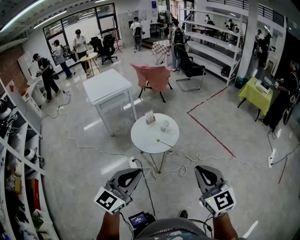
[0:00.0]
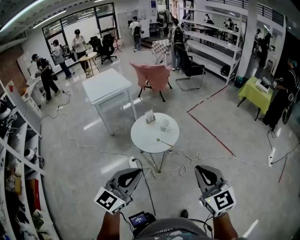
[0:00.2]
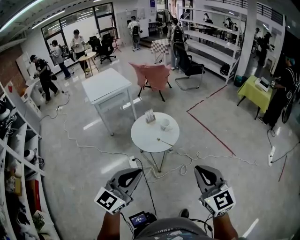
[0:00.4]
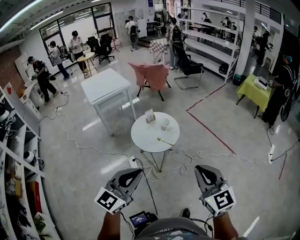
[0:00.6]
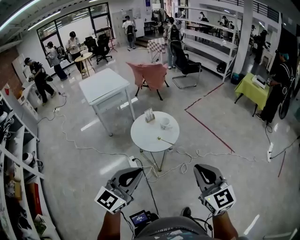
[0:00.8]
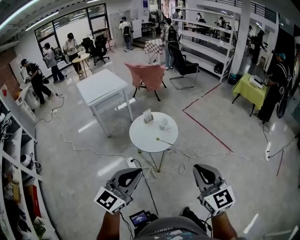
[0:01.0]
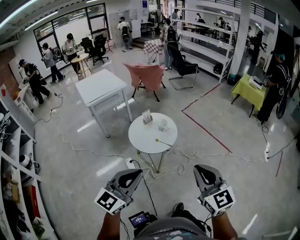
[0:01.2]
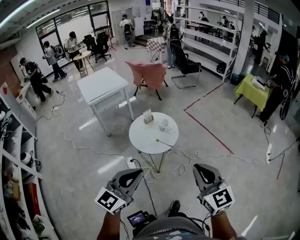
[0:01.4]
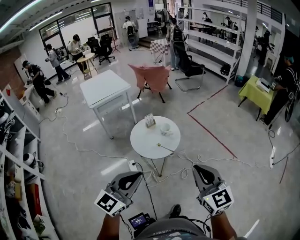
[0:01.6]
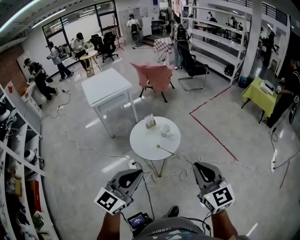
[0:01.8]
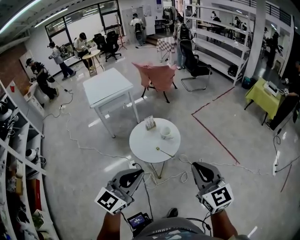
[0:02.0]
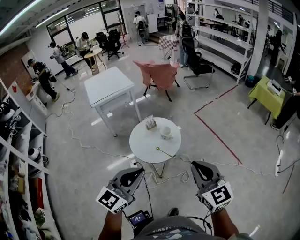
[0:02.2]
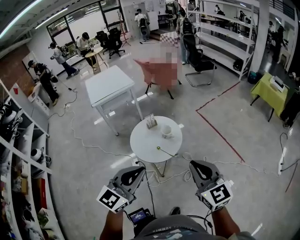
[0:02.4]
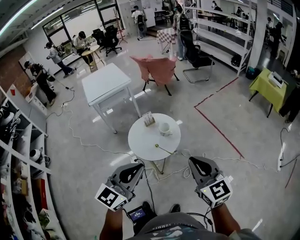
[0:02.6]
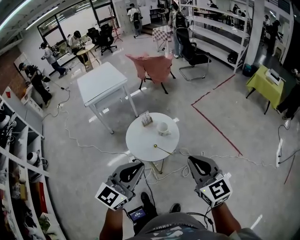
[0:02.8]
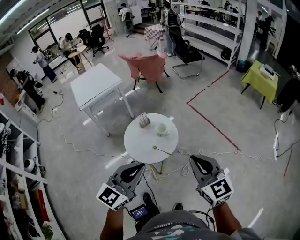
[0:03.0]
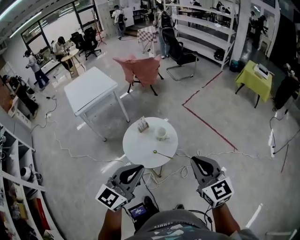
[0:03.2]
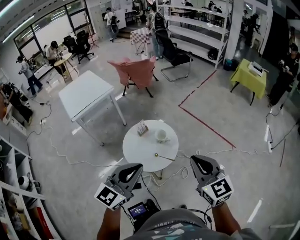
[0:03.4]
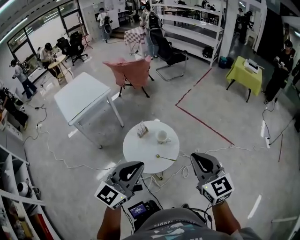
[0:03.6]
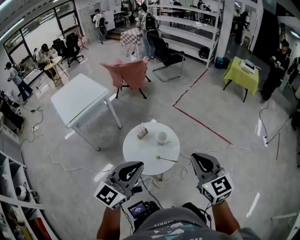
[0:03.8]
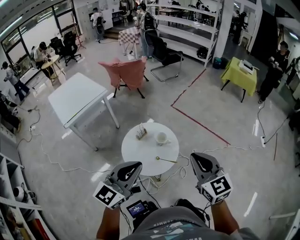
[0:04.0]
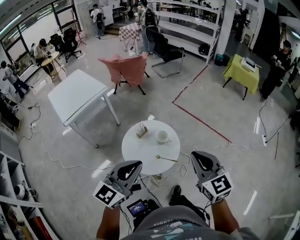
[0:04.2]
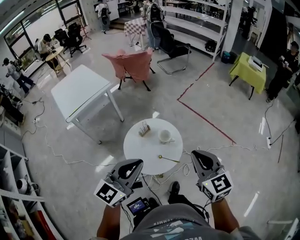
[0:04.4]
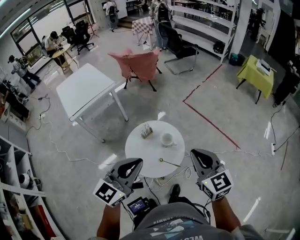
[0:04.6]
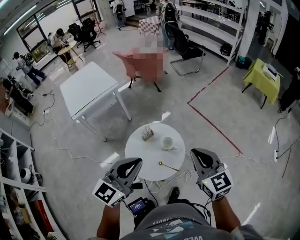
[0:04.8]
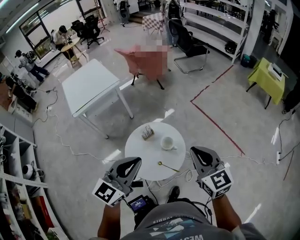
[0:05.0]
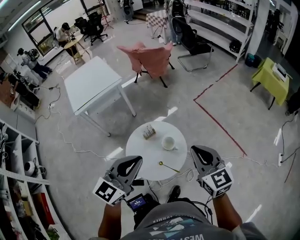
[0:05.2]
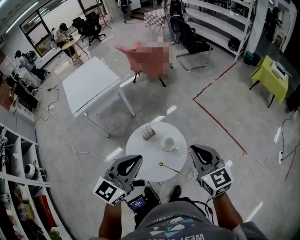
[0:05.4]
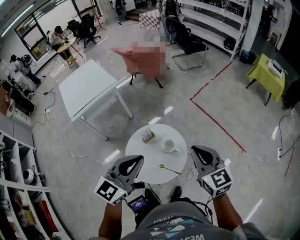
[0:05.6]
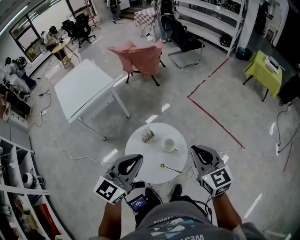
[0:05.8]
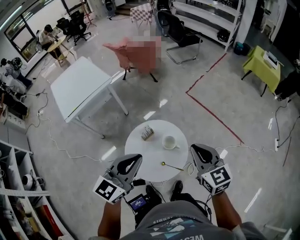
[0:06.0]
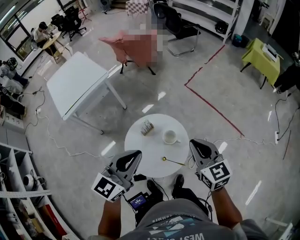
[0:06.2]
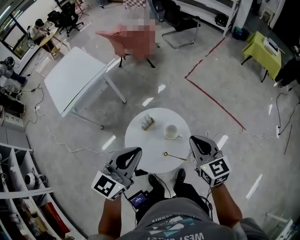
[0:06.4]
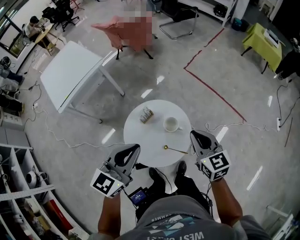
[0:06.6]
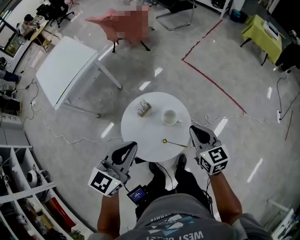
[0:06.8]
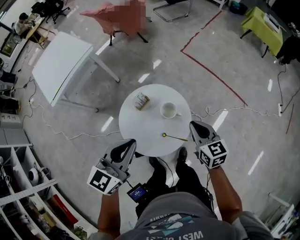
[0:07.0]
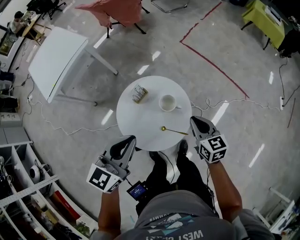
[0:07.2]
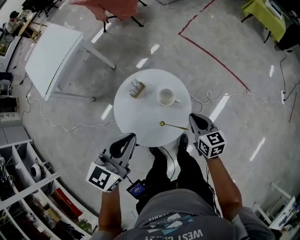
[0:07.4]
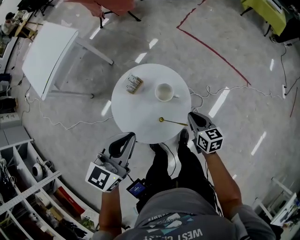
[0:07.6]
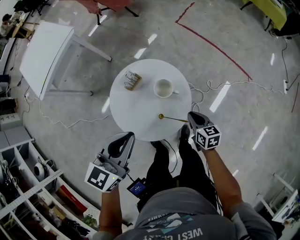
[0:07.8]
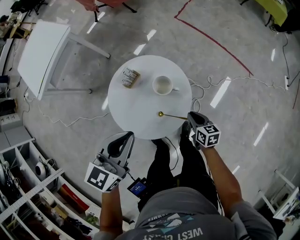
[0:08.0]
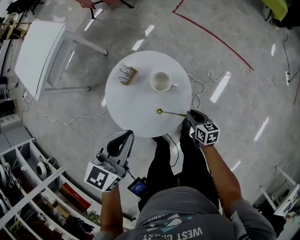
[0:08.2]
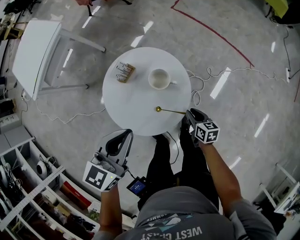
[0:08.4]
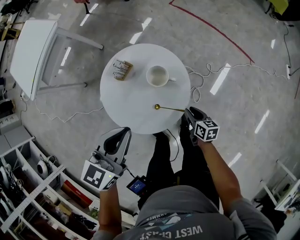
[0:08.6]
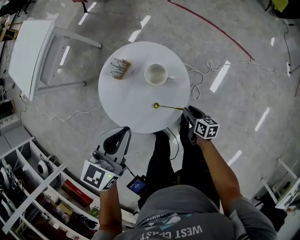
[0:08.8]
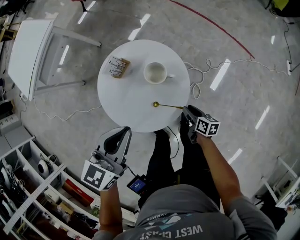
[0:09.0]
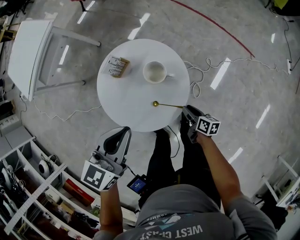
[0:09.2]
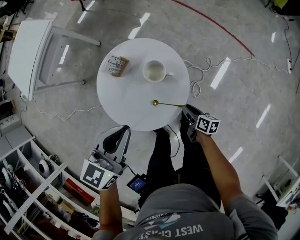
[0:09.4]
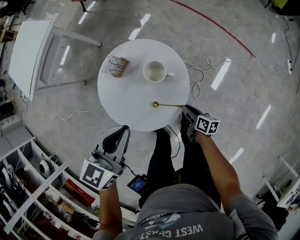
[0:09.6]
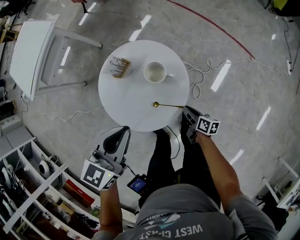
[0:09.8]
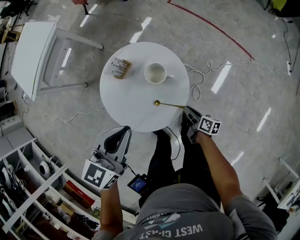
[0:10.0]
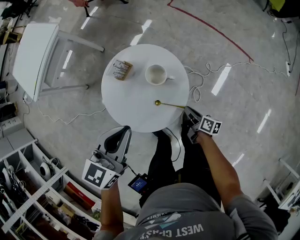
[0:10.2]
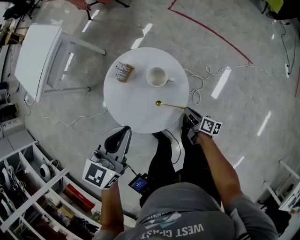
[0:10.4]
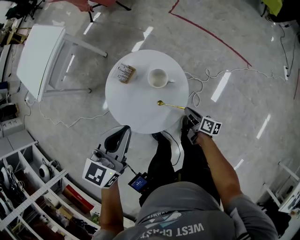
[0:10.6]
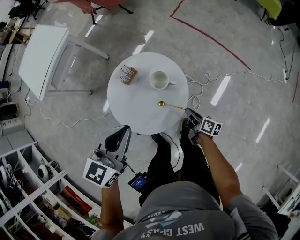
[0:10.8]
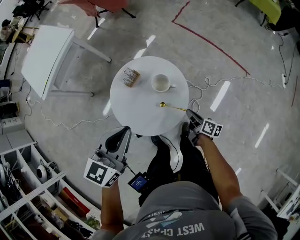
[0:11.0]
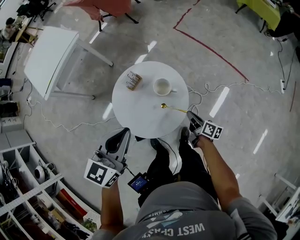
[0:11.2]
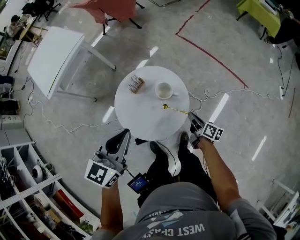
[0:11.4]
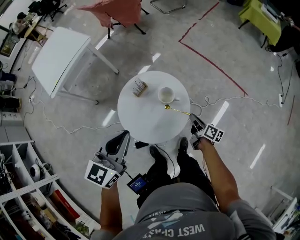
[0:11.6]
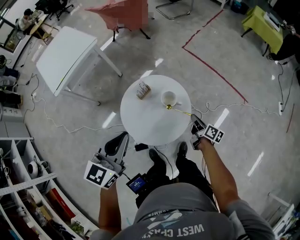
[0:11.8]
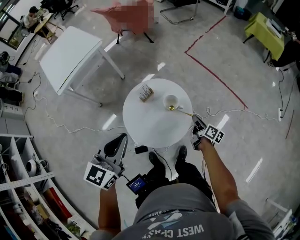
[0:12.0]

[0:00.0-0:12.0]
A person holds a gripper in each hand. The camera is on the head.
0:00.0 to 0:01.6: The right gripper ends up some 5 cm from where it was.
0:01.6 to 0:03.0: Both grippers move forward, approximately 15 cm.
0:03.0 to 0:04.4: The two grippers go about 10 cm to the left and forward.
0:04.4 to 0:06.0: Both grippers move forward, some 10 cm.
0:06.0 to 0:07.6: The right gripper shifts approximately 25 cm downward, and swivels some 30 degrees. The left gripper heads downward, covering about 10 cm.
0:07.6 to 0:09.0: The right gripper shifts some 20 cm downward and backward, swivels approximately 30 degrees, and opens. The left gripper ends up roughly 5 cm from where it was.
0:09.0 to 0:10.4: The right gripper closes its fingers.
0:10.4 to 0:12.0: The left gripper heads to the left and upward, covering approximately 10 cm. Meanwhile the right gripper travels forward and upward by roughly 15 cm.

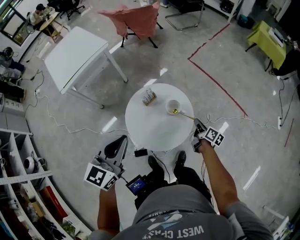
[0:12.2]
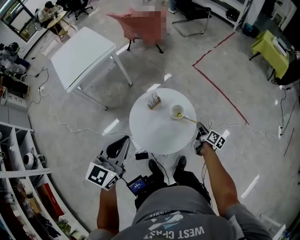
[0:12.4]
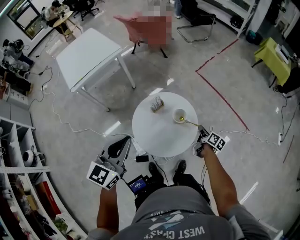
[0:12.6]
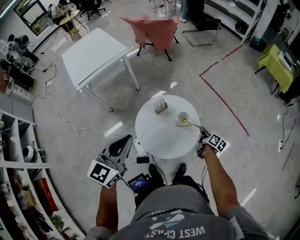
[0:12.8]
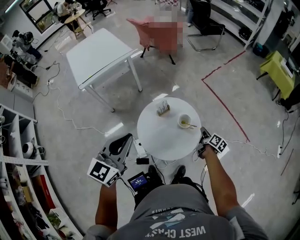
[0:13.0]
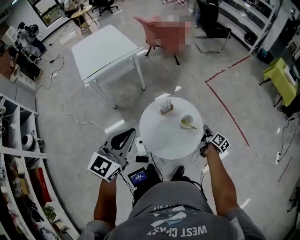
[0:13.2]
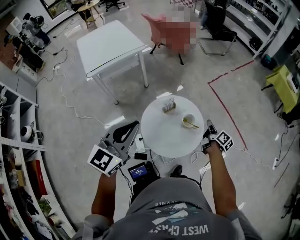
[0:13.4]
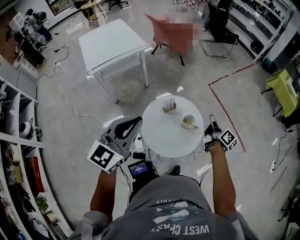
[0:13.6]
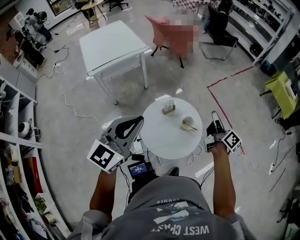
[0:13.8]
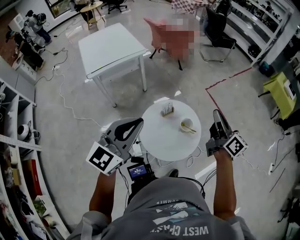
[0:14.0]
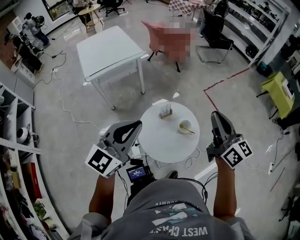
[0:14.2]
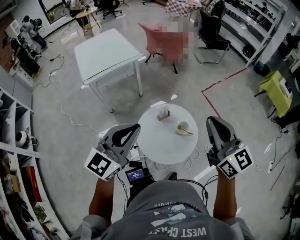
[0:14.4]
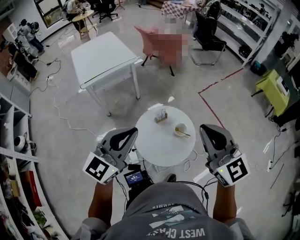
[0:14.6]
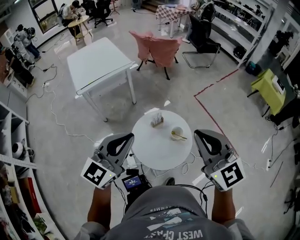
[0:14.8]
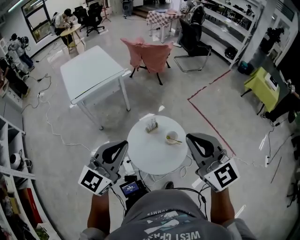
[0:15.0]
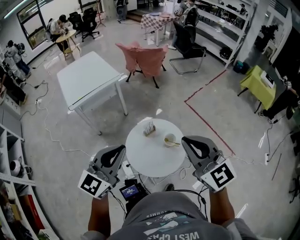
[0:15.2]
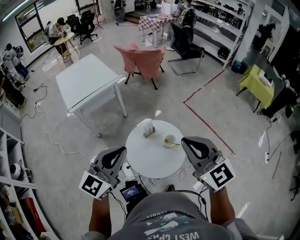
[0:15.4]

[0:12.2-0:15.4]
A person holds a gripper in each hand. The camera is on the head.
0:12.2 to 0:13.8: The right gripper shifts approximately 25 cm upward, and rotates about 30 degrees. The left gripper travels upward by about 10 cm.
0:13.8 to 0:15.4: The right gripper moves upward, backward and to the left, about 25 cm, and rotates around the line of its fingers by roughly 70 degrees, counterclockwise from behind.

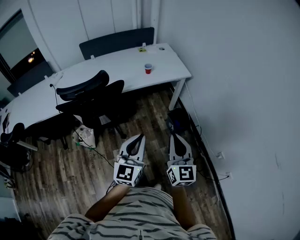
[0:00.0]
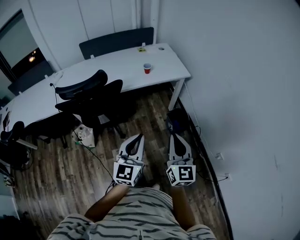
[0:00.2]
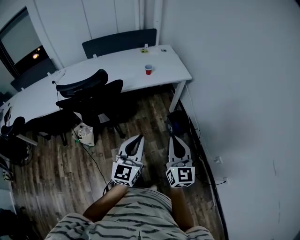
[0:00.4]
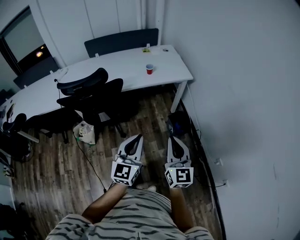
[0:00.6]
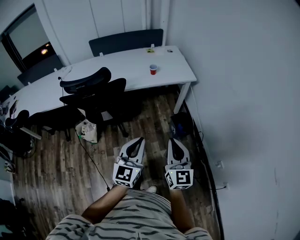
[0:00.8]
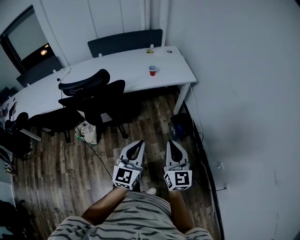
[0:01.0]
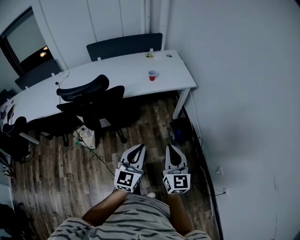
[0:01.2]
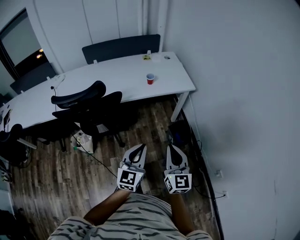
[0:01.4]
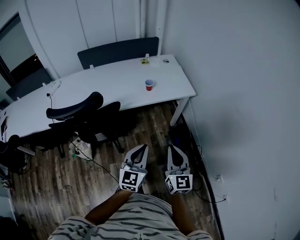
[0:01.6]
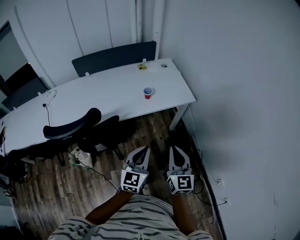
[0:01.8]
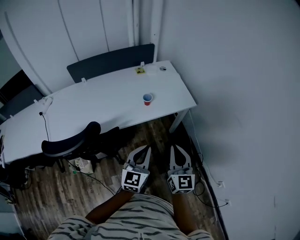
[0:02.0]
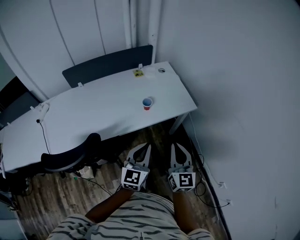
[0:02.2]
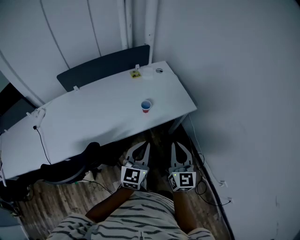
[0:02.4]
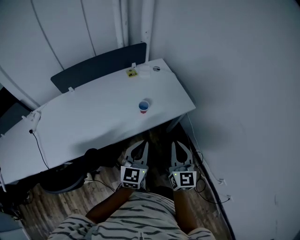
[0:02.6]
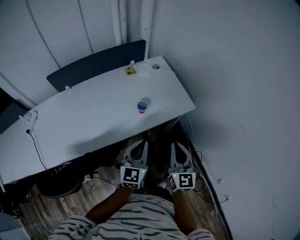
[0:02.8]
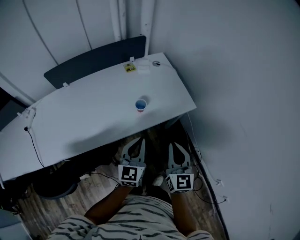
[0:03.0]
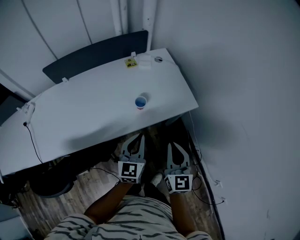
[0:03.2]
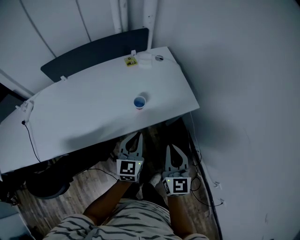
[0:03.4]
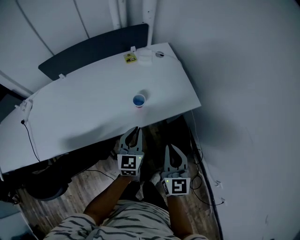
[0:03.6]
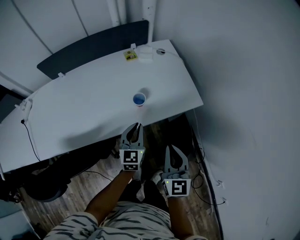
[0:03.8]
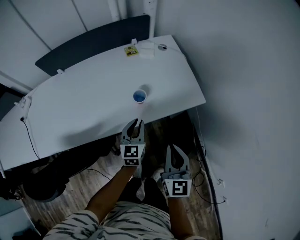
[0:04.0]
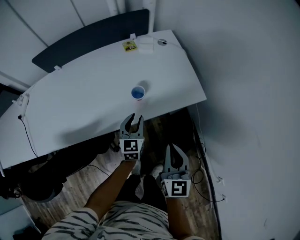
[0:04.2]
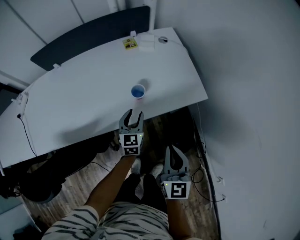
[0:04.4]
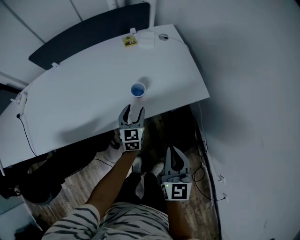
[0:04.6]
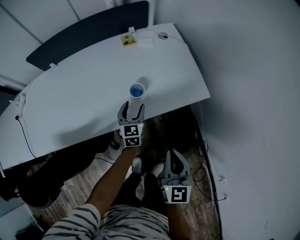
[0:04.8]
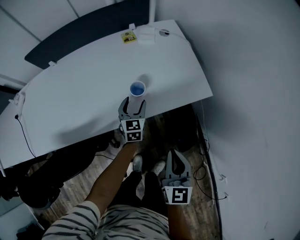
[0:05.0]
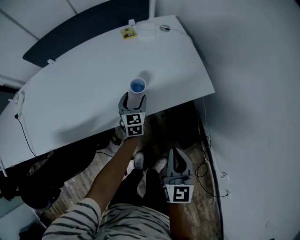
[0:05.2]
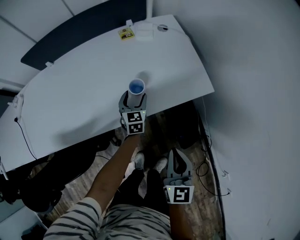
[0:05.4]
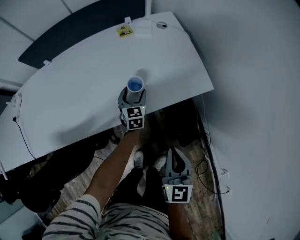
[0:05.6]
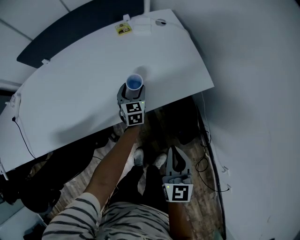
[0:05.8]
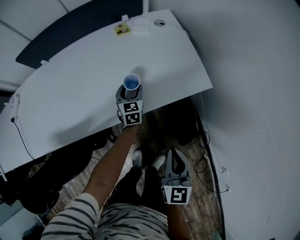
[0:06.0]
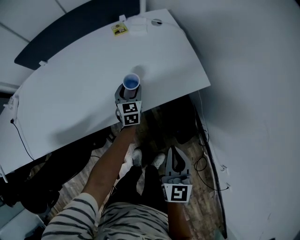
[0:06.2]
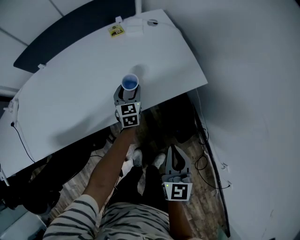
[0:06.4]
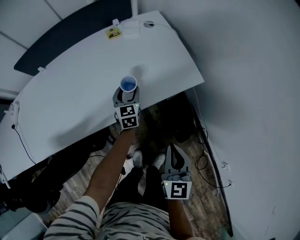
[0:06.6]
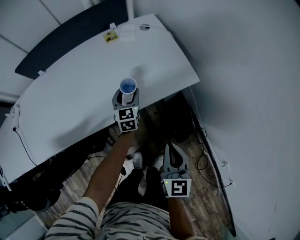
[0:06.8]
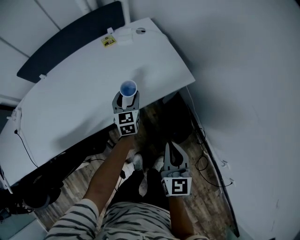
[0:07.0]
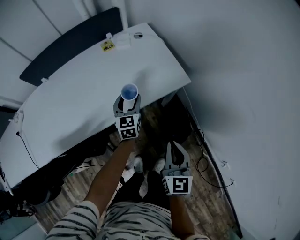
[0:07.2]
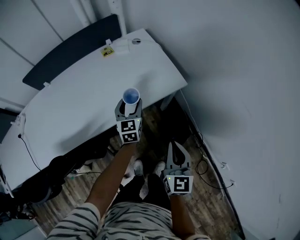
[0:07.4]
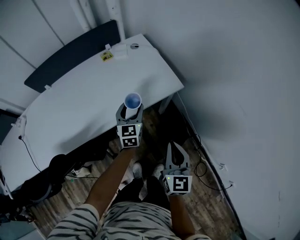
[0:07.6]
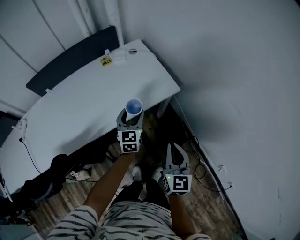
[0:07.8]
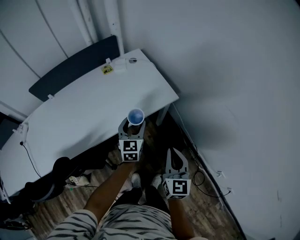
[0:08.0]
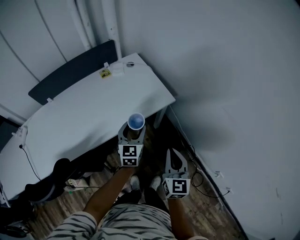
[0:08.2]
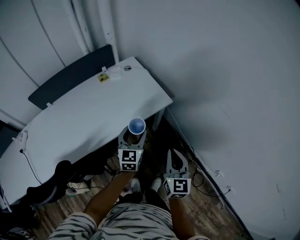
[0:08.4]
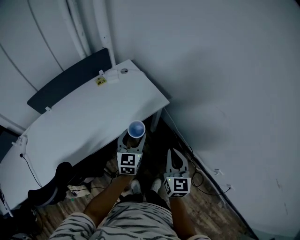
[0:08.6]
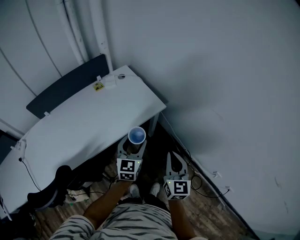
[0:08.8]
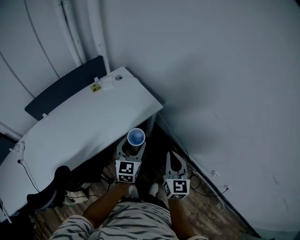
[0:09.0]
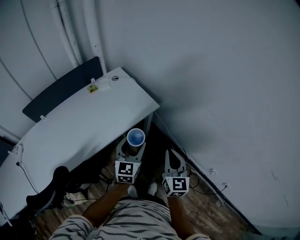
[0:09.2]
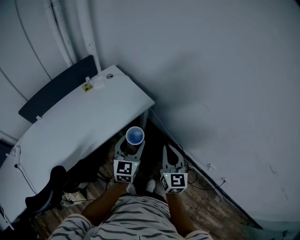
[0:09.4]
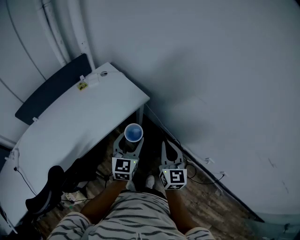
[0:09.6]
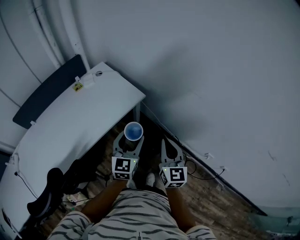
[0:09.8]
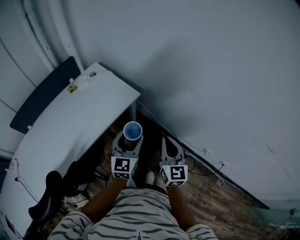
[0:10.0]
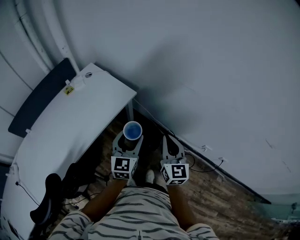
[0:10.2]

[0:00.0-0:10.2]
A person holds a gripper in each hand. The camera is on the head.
0:00.0 to 0:01.4: The left gripper travels forward and downward by about 10 cm, while the right gripper shifts about 10 cm forward.
0:01.4 to 0:03.0: Both grippers move forward, approximately 35 cm.
0:03.0 to 0:04.4: The left gripper is displaced downward and forward by roughly 25 cm, and opens its fingers; the right gripper goes approximately 10 cm downward.
0:04.4 to 0:05.8: The left gripper goes roughly 15 cm forward and downward, and opens up.
0:05.8 to 0:07.2: The left gripper heads upward, backward and to the right, covering some 15 cm, while the right gripper goes roughly 5 cm to the right.
0:07.2 to 0:08.8: The right gripper moves upward, to the right and backward, about 10 cm; the left gripper travels backward, upward and to the right by approximately 25 cm, and changes its angle by roughly 20 degrees.
0:08.8 to 0:10.2: Both grippers travel together to the right, roughly 10 cm.
